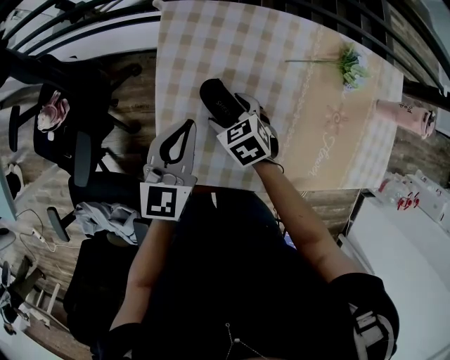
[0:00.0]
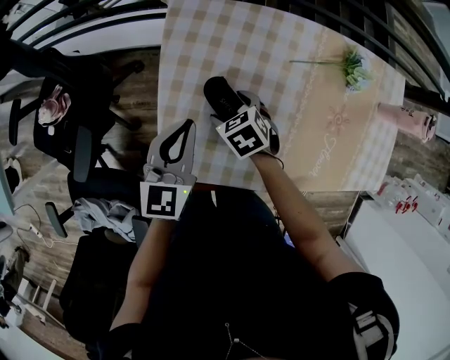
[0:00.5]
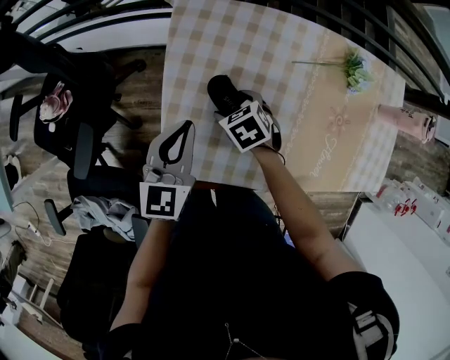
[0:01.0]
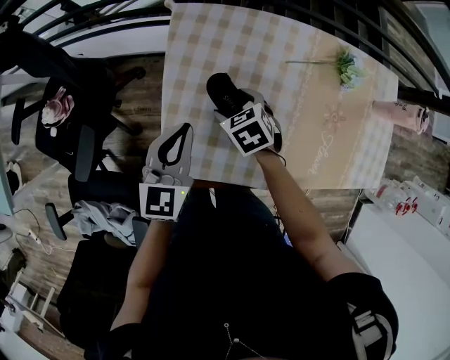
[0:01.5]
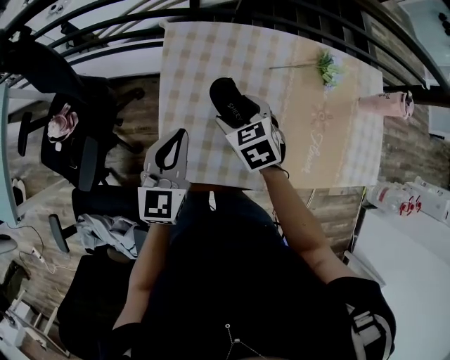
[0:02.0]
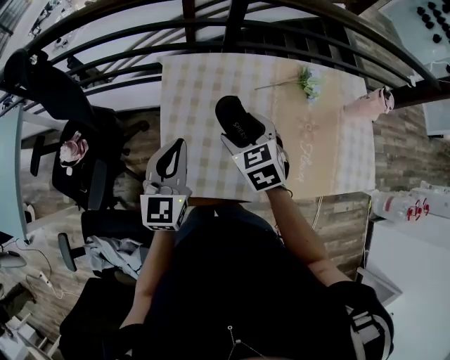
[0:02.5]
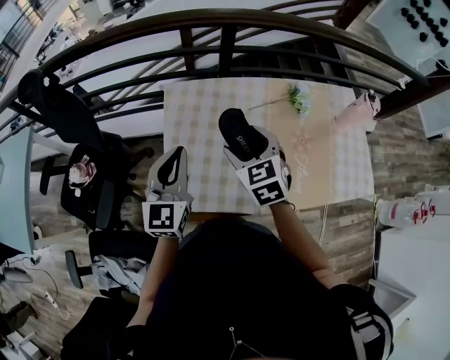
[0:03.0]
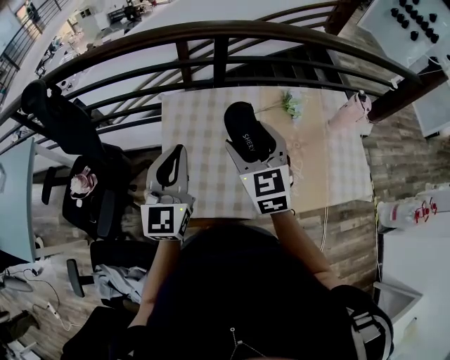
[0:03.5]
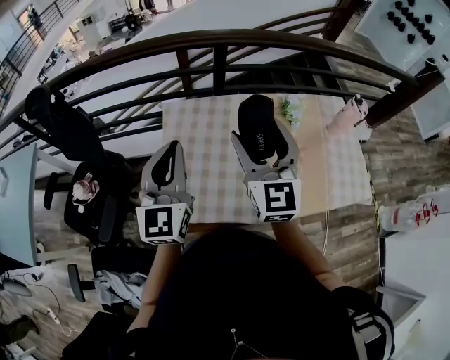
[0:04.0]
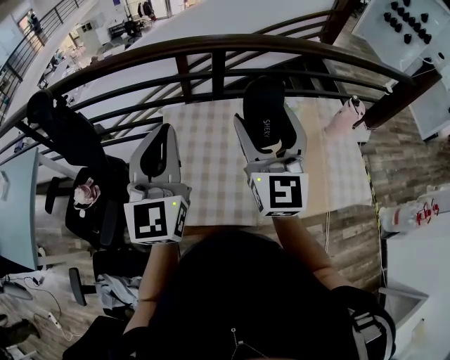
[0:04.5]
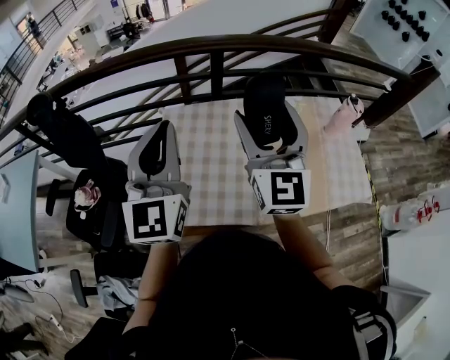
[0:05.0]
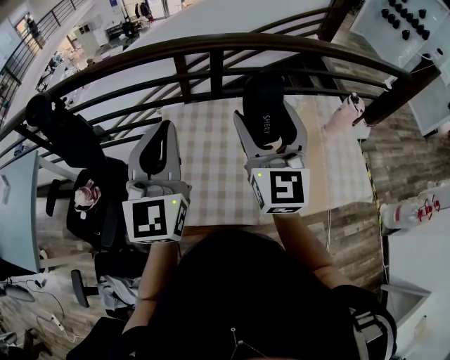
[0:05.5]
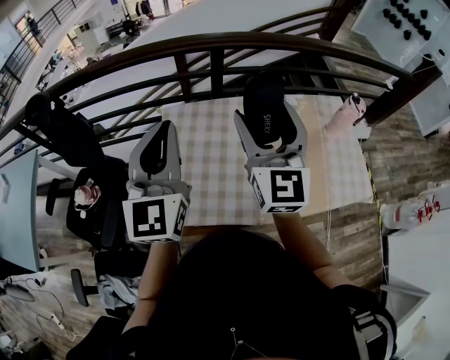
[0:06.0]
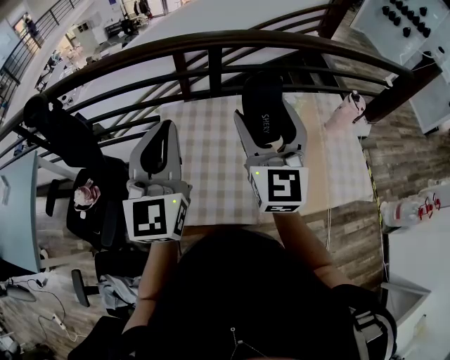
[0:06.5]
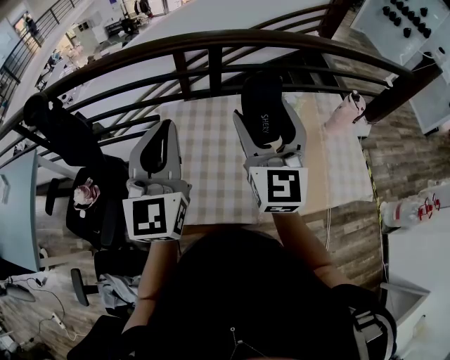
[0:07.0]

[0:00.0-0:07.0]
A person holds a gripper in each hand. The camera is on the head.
0:00.0 to 0:02.0: The right gripper travels upward by about 10 cm, while the left gripper shifts by approximately 5 cm.
0:02.0 to 0:03.5: Both grippers travel together upward, about 20 cm. The right gripper tilts its fingers some 30 degrees upward. The left gripper swivels approximately 20 degrees.
0:03.5 to 0:05.0: Both grippers move upward, about 15 cm. The right gripper rotates about 30 degrees.
0:05.0 to 0:07.0: The grippers make only small movements.

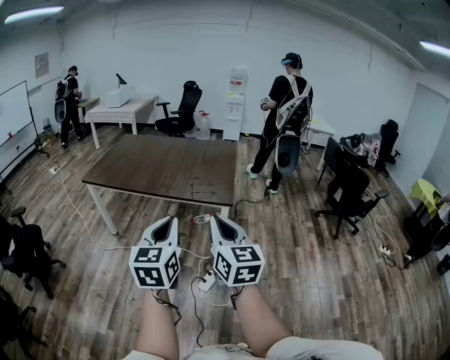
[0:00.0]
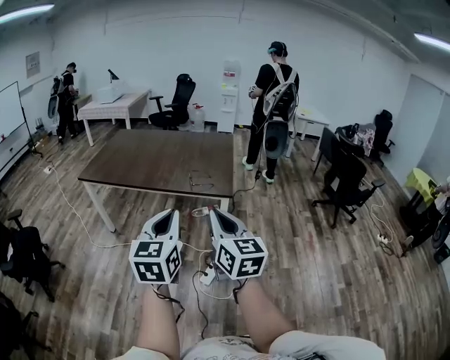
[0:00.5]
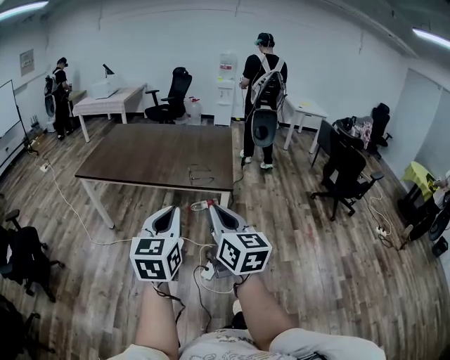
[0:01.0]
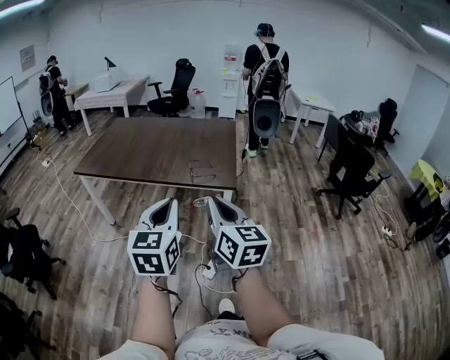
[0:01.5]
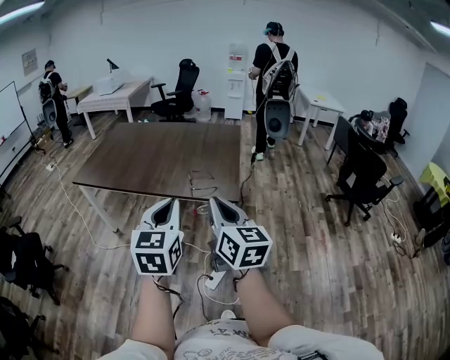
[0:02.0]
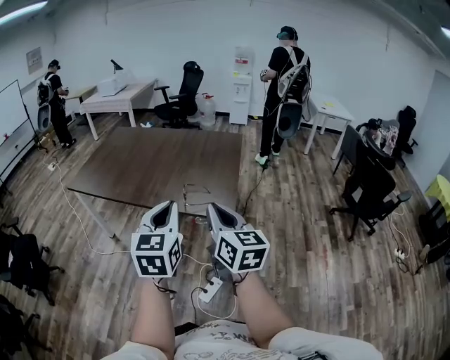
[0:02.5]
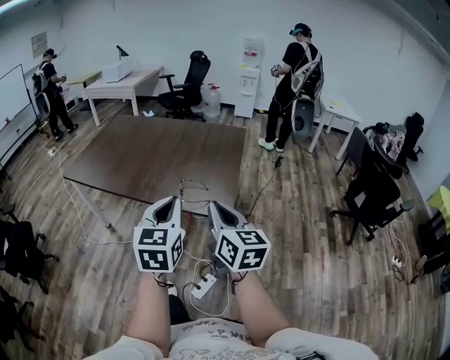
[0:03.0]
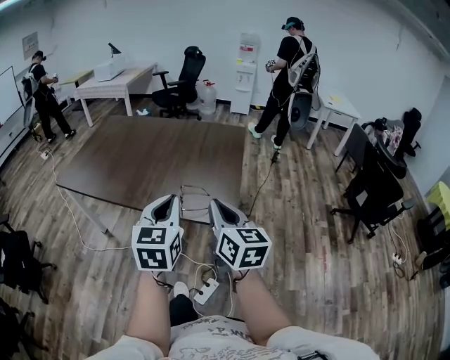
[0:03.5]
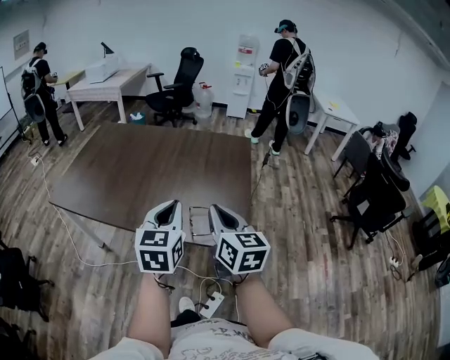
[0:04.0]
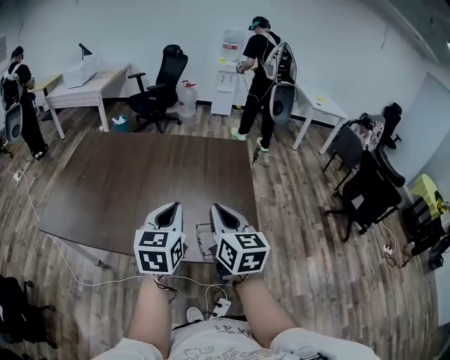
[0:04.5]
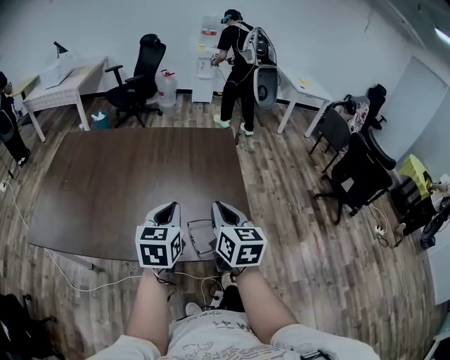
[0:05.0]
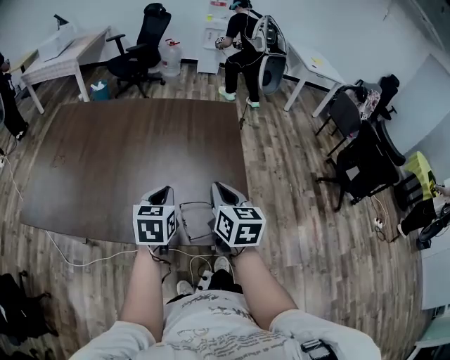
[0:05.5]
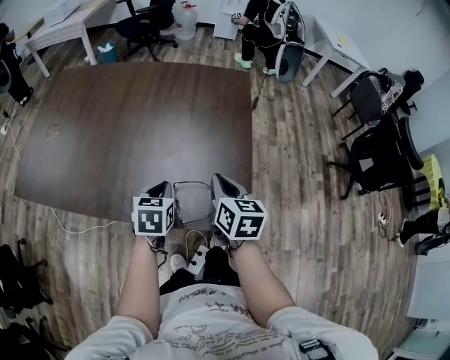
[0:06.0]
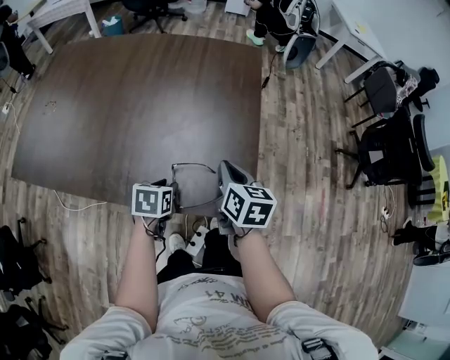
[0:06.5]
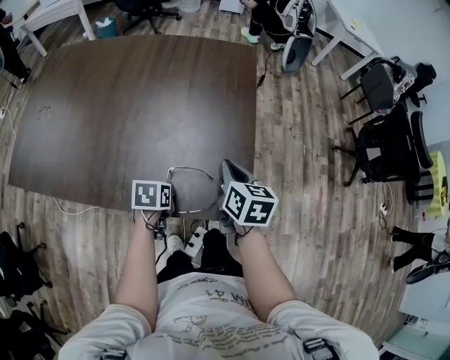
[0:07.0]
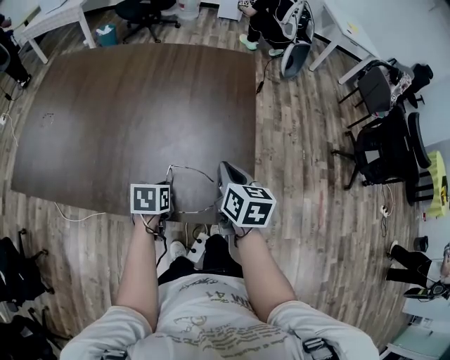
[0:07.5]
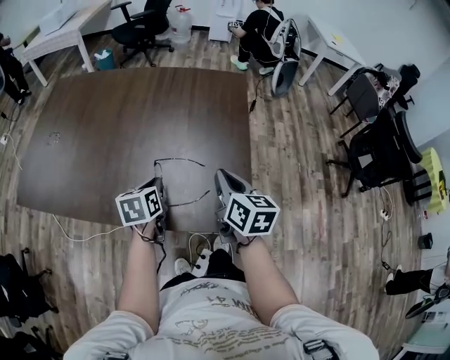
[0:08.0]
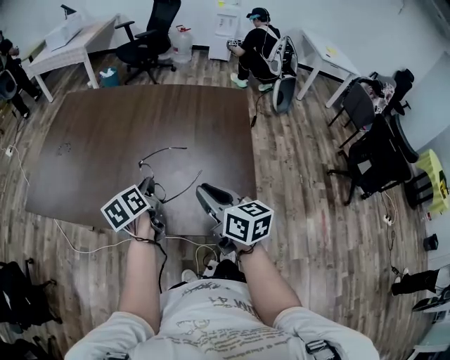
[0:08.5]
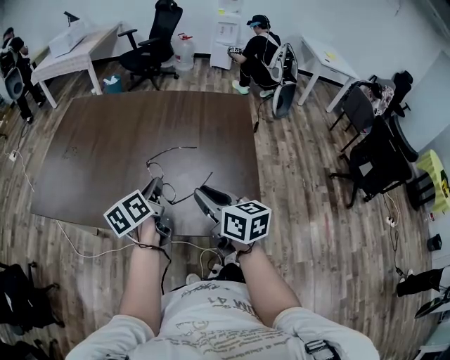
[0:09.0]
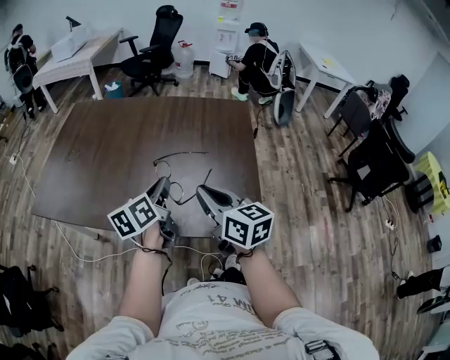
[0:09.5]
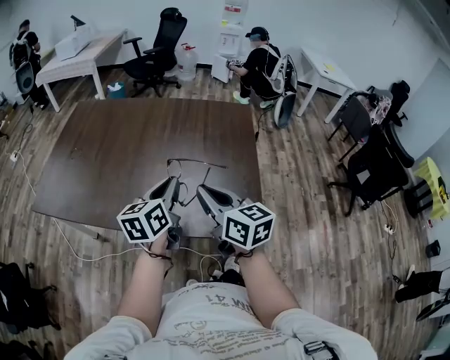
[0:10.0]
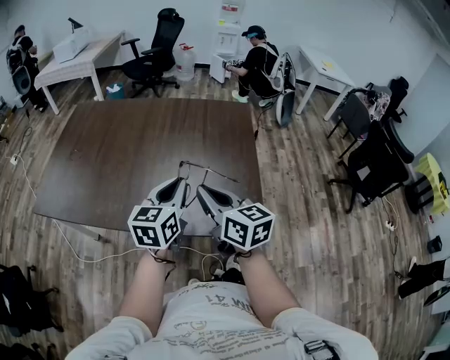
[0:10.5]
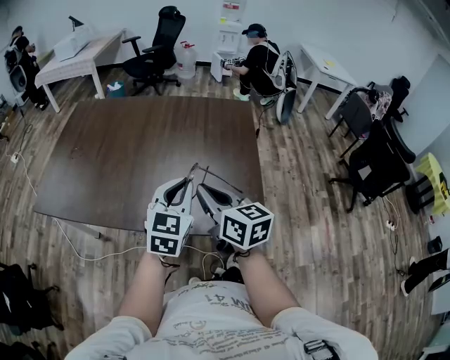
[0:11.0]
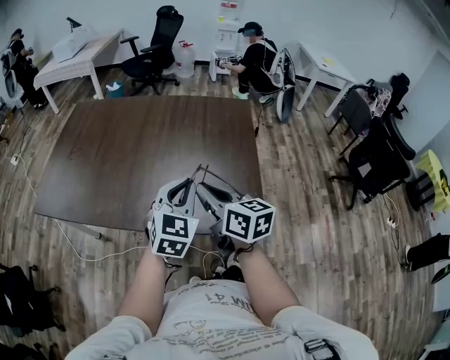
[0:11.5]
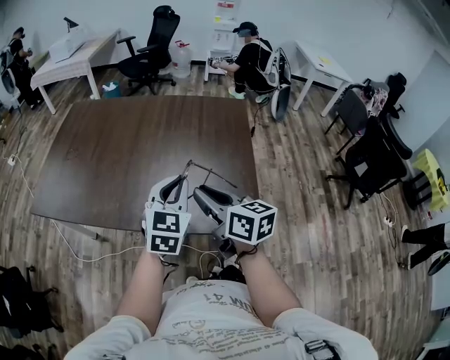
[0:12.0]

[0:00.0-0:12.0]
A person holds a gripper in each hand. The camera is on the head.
0:00.0 to 0:02.0: The grippers both shift forward by roughly 20 cm.
0:02.0 to 0:04.0: The two grippers go approximately 35 cm forward.
0:04.0 to 0:06.0: The right gripper is displaced forward and downward by about 25 cm, and rotates roughly 20 degrees; the left gripper travels downward and forward by roughly 30 cm, and turns by some 30 degrees.
0:06.0 to 0:08.0: The left gripper travels downward and back again, approximately 10 cm each way, and opens and closes again.
0:08.0 to 0:10.0: The right gripper goes approximately 20 cm to the left, upward and backward, and turns by approximately 20 degrees, while the left gripper is displaced upward by about 15 cm, and changes its angle by roughly 30 degrees.
0:10.0 to 0:12.0: The left gripper moves roughly 5 cm, and twists some 40 degrees clockwise, seen from behind.

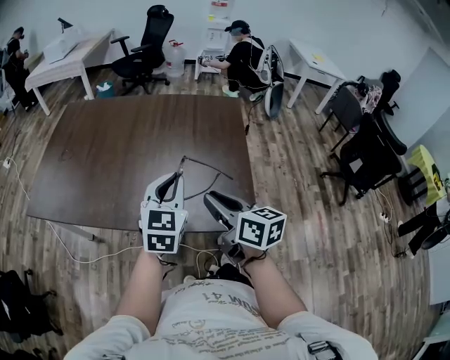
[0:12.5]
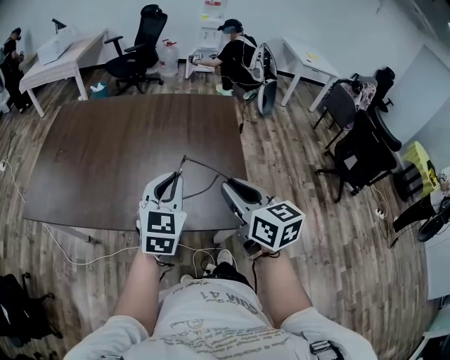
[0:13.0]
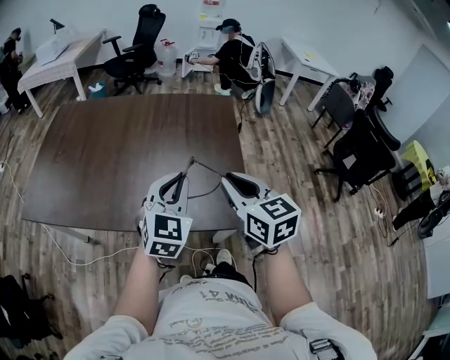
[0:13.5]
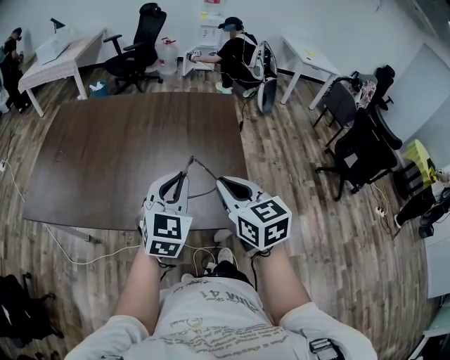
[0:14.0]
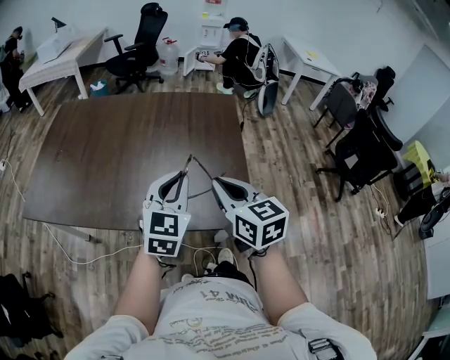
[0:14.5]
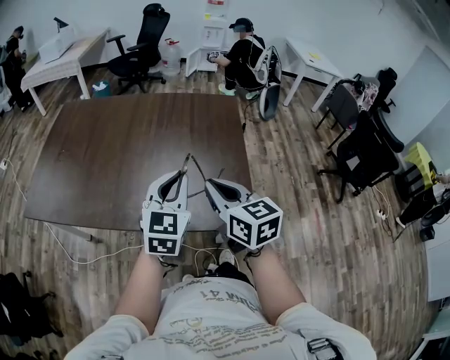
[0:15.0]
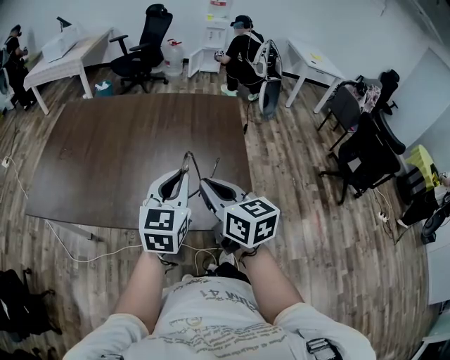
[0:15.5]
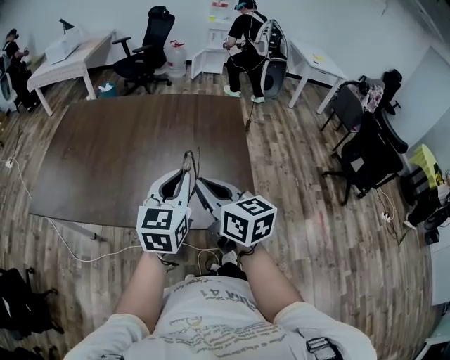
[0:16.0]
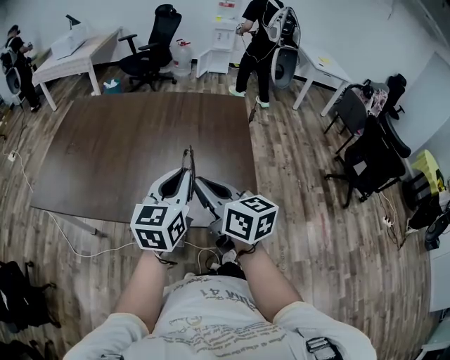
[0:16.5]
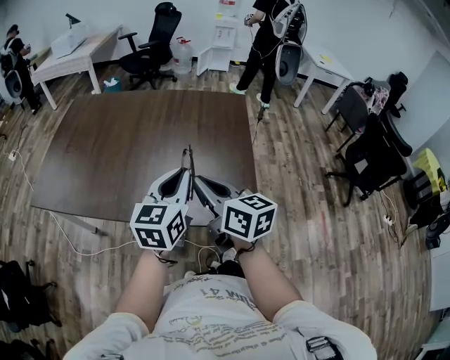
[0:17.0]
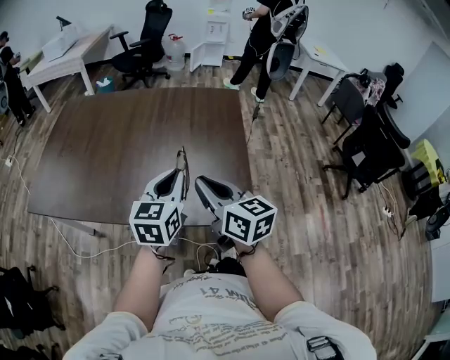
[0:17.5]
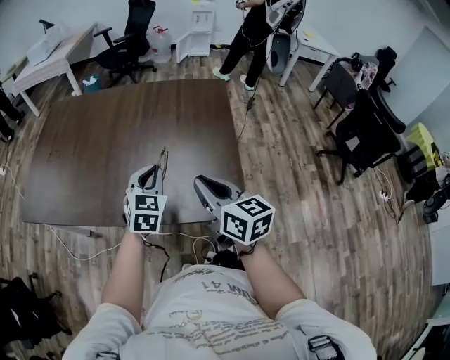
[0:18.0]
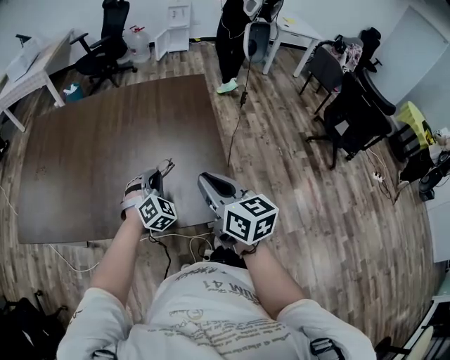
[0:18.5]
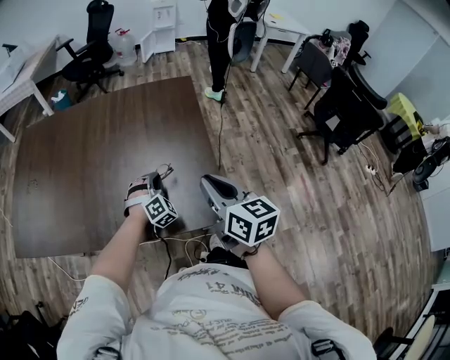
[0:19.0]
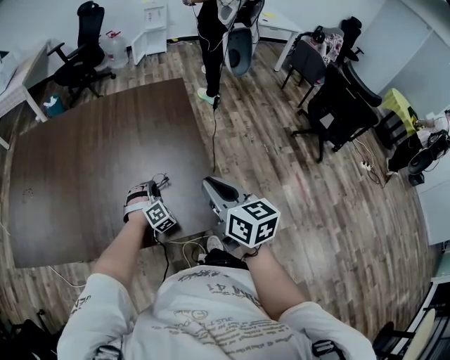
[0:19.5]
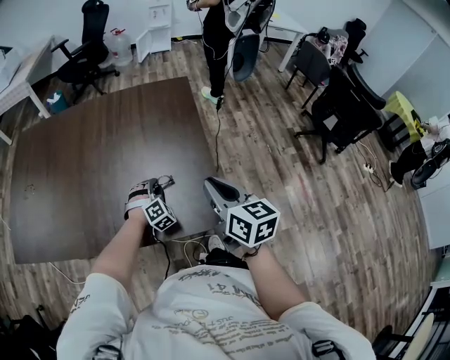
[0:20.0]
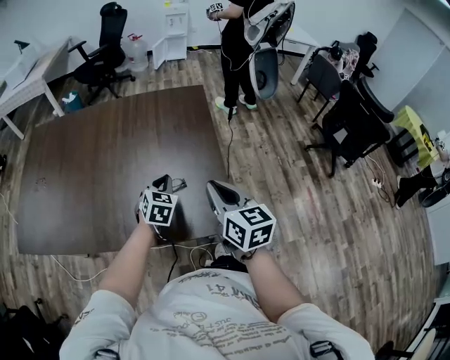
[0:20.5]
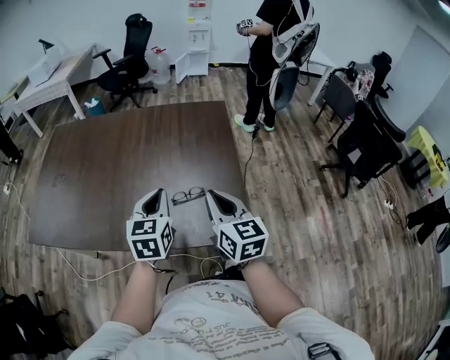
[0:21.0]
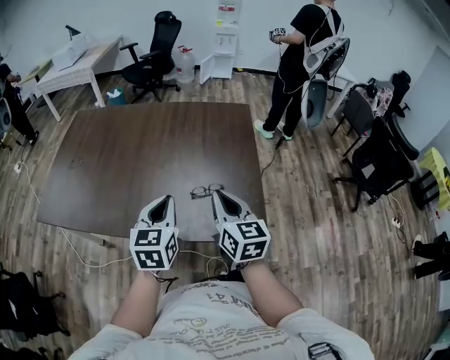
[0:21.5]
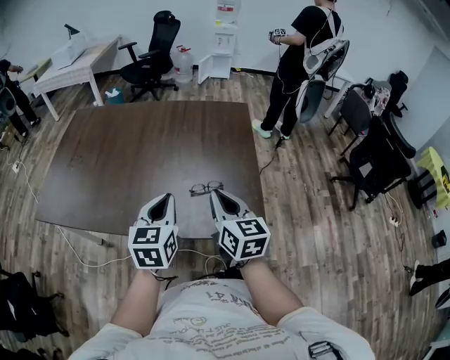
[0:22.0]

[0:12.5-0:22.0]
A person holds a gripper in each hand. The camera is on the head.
0:12.5 to 0:14.5: The right gripper swivels approximately 20 degrees.
0:14.5 to 0:16.5: The left gripper rotates some 20 degrees; the right gripper moves to the left, about 5 cm, and turns by about 20 degrees.
0:16.5 to 0:18.0: The right gripper heads to the right, covering about 5 cm. Meanwhile the left gripper moves downward and forward, roughly 15 cm, and changes its angle by some 30 degrees.
0:18.0 to 0:20.0: The left gripper is displaced downward and to the right by roughly 25 cm, rotates around the line of its fingers by about 50 degrees, clockwise from behind, and opens its fingers. The right gripper is displaced to the right by approximately 10 cm.
0:20.0 to 0:22.0: The right gripper moves to the left, about 15 cm. The left gripper travels upward, backward and to the left by approximately 35 cm, rolls counterclockwise, seen from behind, by roughly 70 degrees, and closes up.
